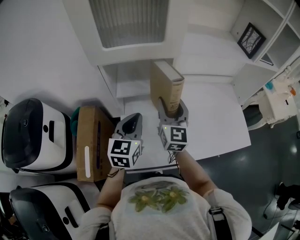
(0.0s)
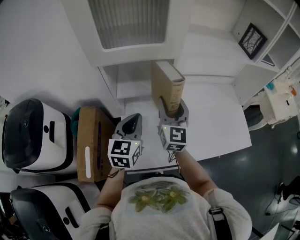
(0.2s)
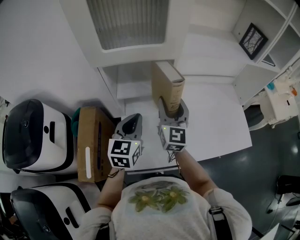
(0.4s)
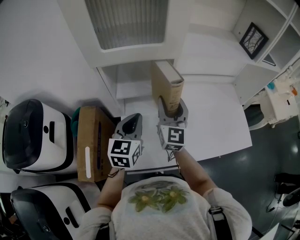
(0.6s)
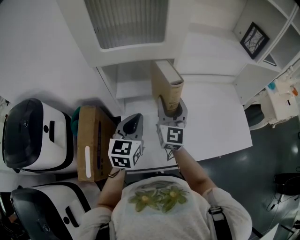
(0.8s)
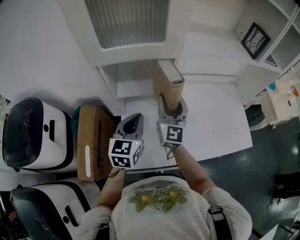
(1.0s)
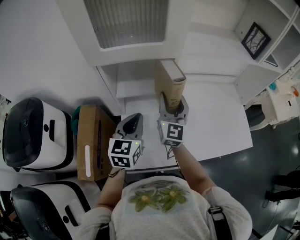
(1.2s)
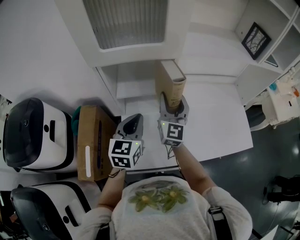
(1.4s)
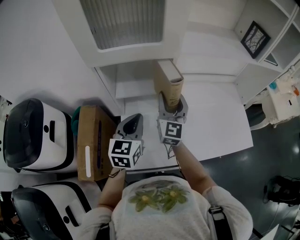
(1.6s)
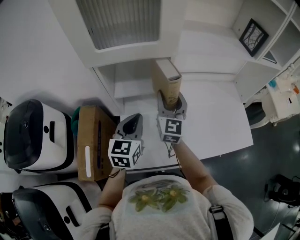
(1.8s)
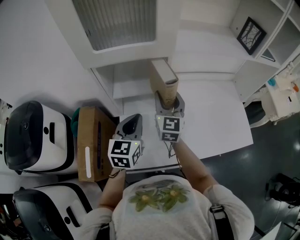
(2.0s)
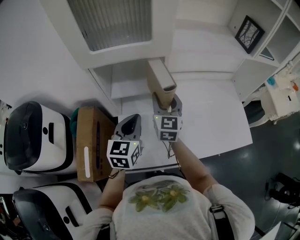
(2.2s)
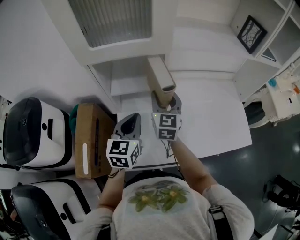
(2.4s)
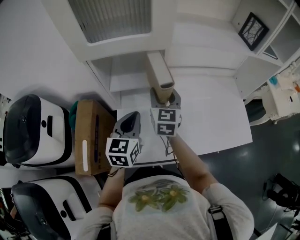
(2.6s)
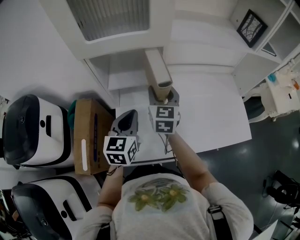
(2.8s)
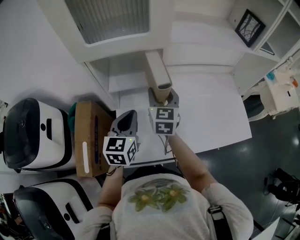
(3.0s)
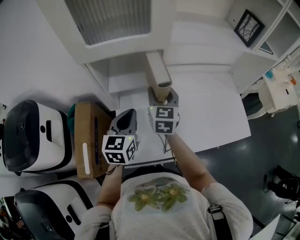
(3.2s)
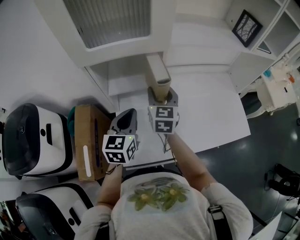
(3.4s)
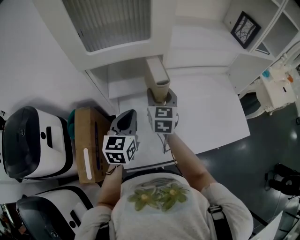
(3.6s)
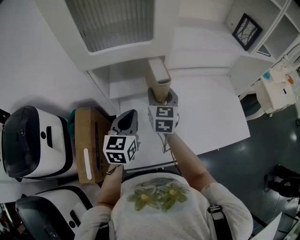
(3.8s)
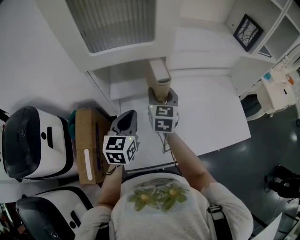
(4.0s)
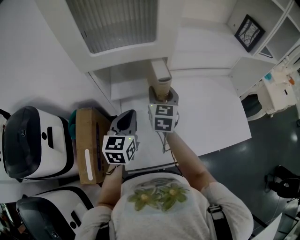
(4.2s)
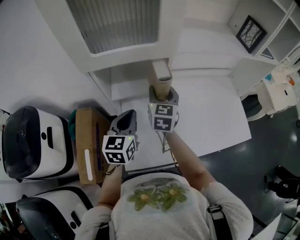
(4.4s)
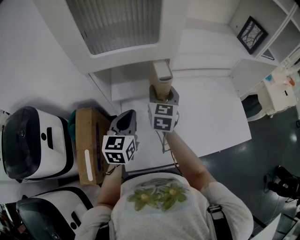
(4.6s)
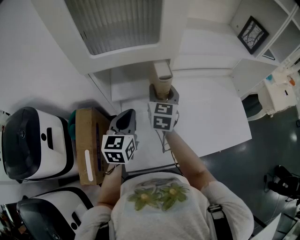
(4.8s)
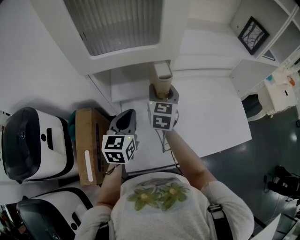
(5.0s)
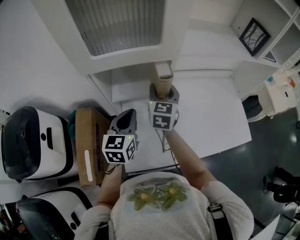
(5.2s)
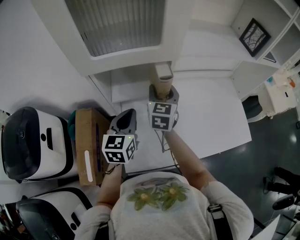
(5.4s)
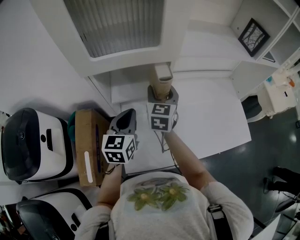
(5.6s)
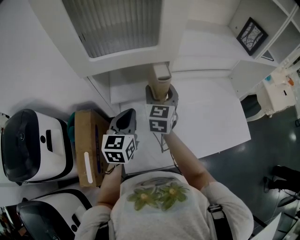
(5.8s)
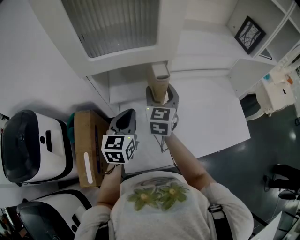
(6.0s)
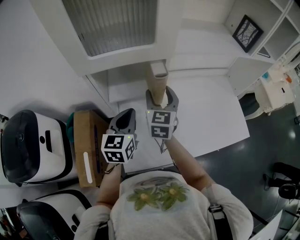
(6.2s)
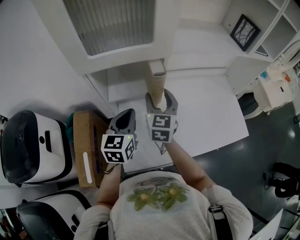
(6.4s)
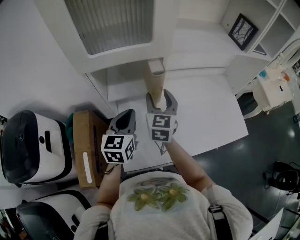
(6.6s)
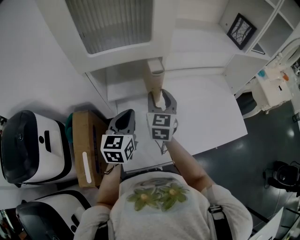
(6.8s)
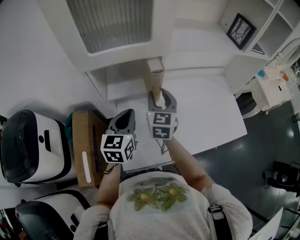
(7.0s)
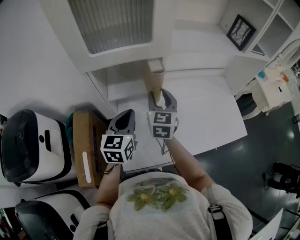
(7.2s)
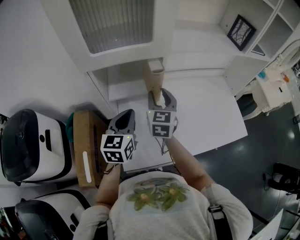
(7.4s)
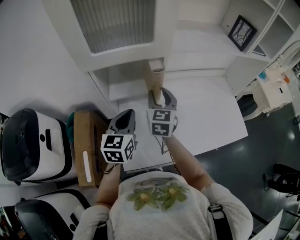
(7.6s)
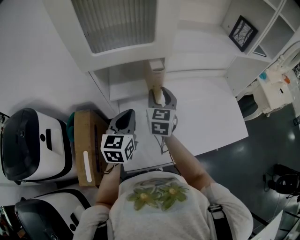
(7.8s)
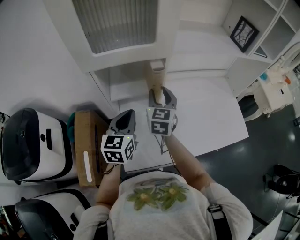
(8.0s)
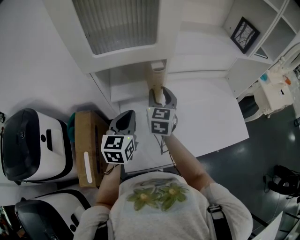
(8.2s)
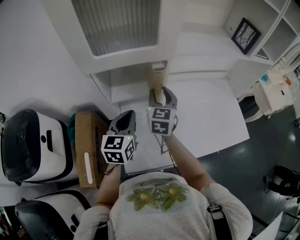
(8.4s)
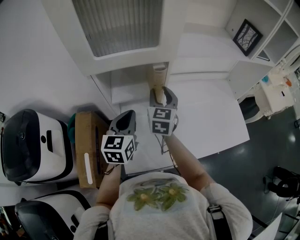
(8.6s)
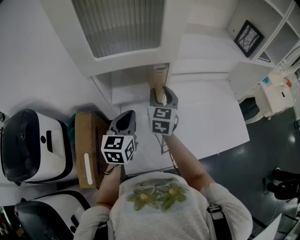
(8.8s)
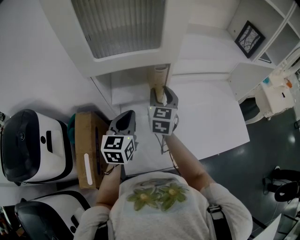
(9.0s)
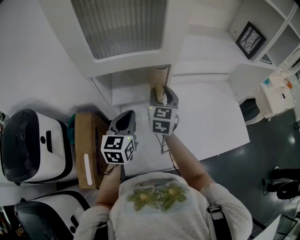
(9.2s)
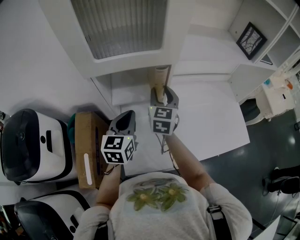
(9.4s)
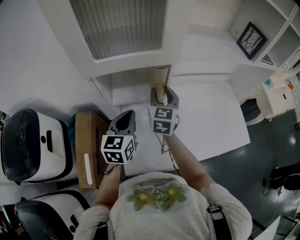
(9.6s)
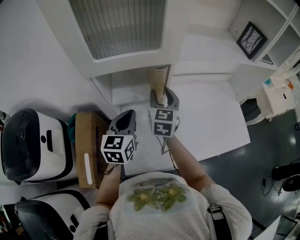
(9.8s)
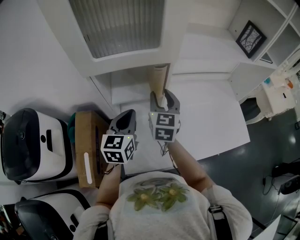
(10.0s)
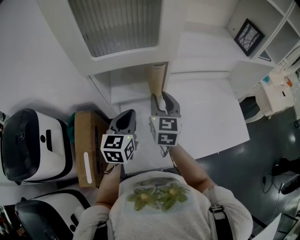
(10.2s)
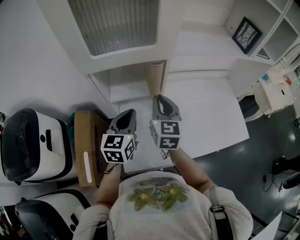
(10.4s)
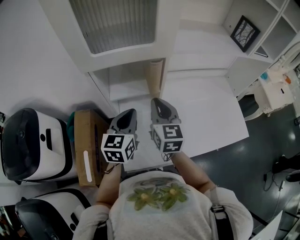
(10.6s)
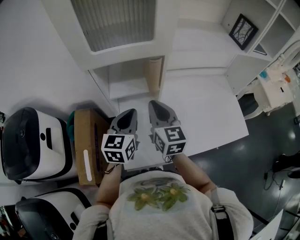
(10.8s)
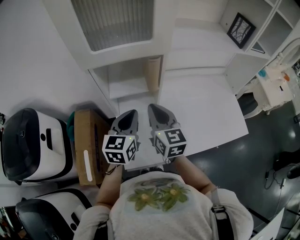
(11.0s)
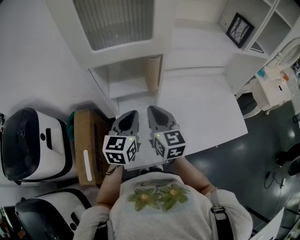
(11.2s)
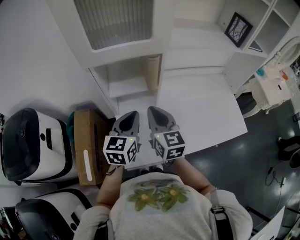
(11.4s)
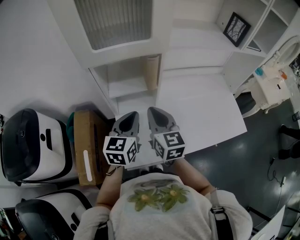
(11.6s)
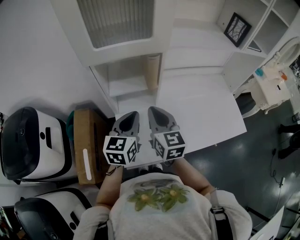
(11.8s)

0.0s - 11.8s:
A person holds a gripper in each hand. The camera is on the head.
0.0s - 1.4s: There are only small adjustments of the grippers.
1.4s - 3.0s: The right gripper swivels roughly 20 degrees.
3.0s - 4.4s: The grippers move only a little.
4.4s - 8.8s: The grippers make only small movements.
8.8s - 10.4s: The right gripper is displaced backward by approximately 5 cm, and closes up.
10.4s - 11.8s: The right gripper travels backward by approximately 10 cm. Meanwhile the left gripper ends up about 5 cm from where it was.

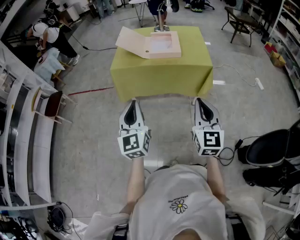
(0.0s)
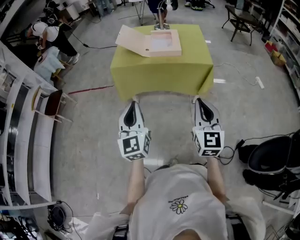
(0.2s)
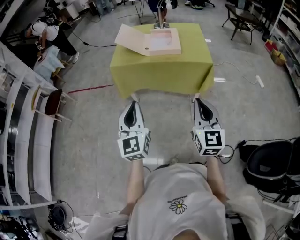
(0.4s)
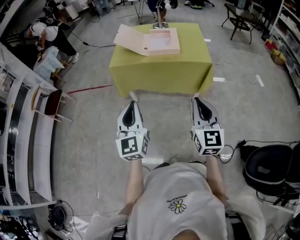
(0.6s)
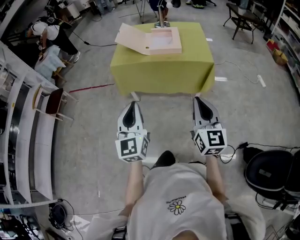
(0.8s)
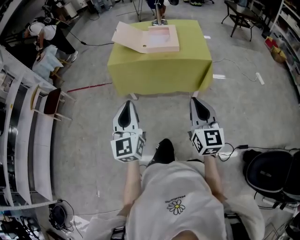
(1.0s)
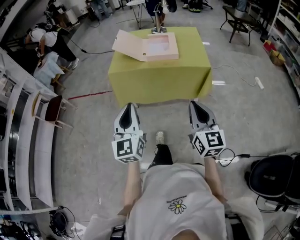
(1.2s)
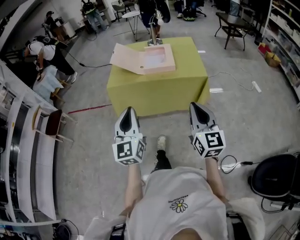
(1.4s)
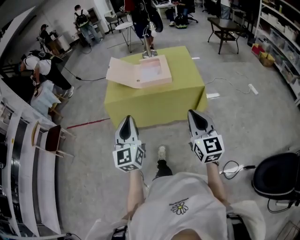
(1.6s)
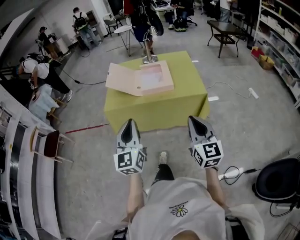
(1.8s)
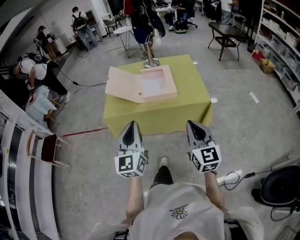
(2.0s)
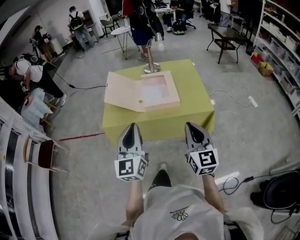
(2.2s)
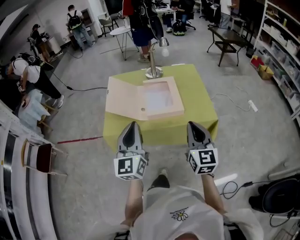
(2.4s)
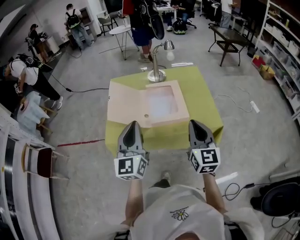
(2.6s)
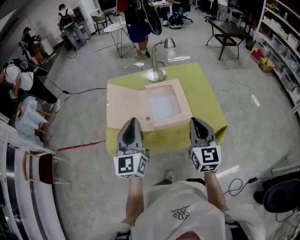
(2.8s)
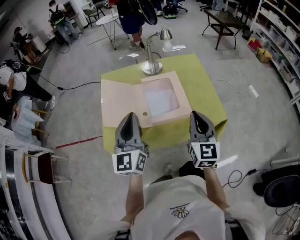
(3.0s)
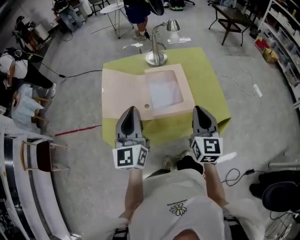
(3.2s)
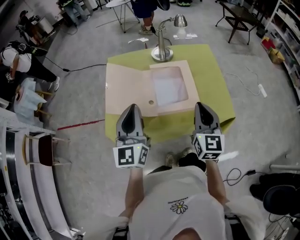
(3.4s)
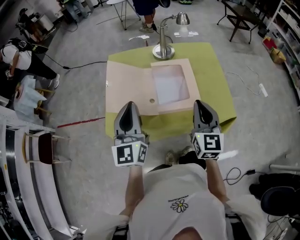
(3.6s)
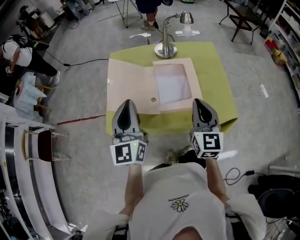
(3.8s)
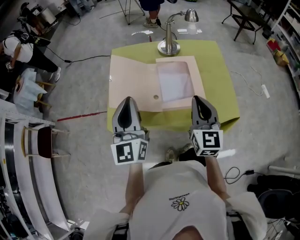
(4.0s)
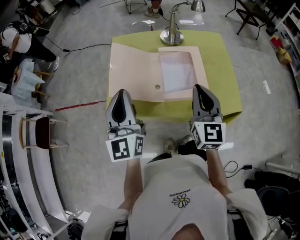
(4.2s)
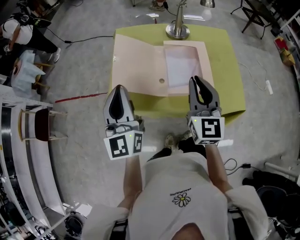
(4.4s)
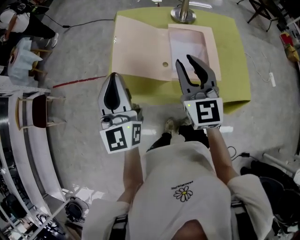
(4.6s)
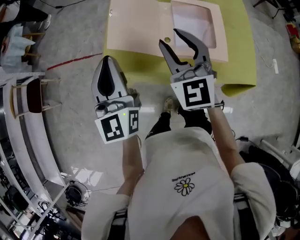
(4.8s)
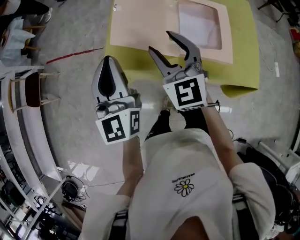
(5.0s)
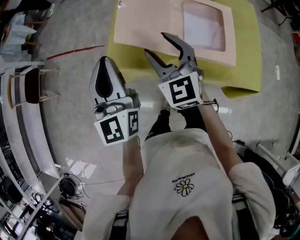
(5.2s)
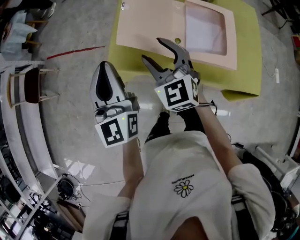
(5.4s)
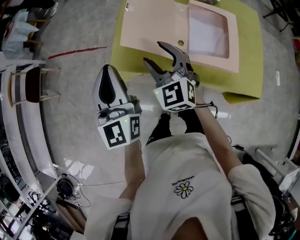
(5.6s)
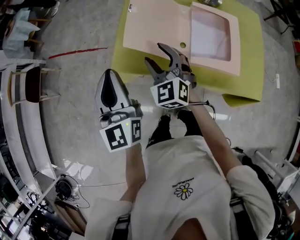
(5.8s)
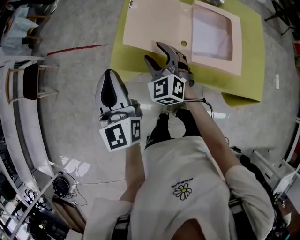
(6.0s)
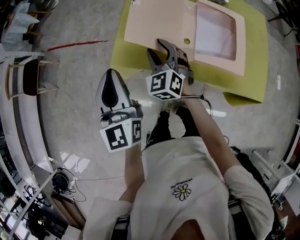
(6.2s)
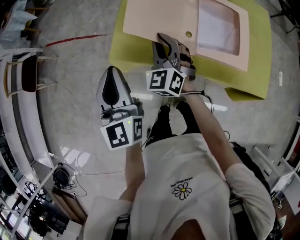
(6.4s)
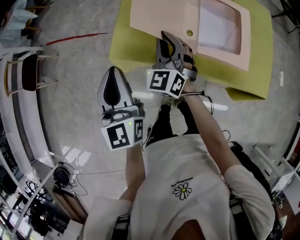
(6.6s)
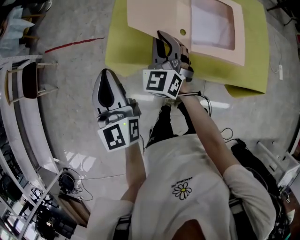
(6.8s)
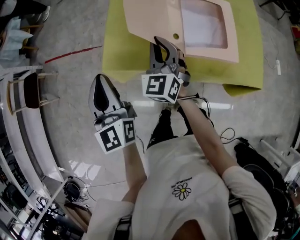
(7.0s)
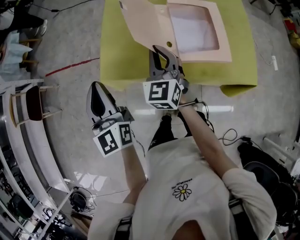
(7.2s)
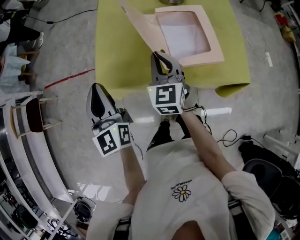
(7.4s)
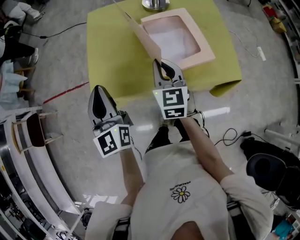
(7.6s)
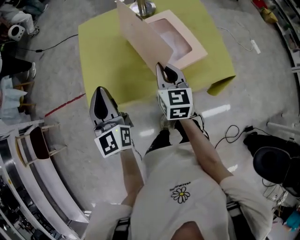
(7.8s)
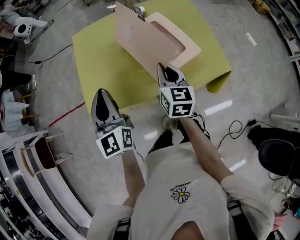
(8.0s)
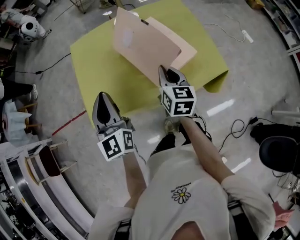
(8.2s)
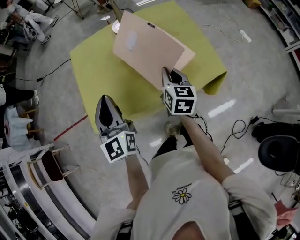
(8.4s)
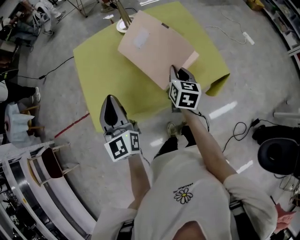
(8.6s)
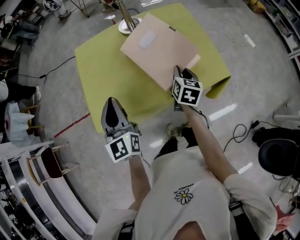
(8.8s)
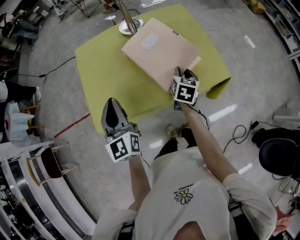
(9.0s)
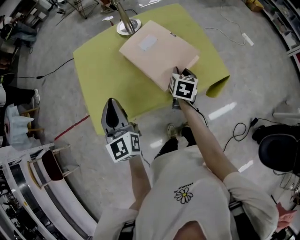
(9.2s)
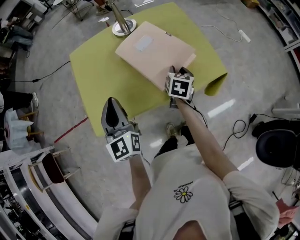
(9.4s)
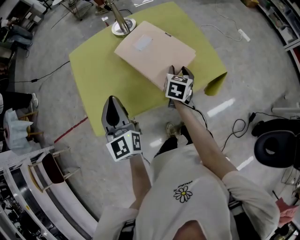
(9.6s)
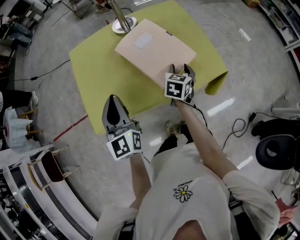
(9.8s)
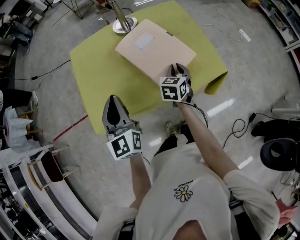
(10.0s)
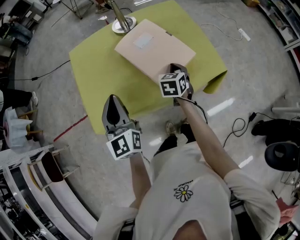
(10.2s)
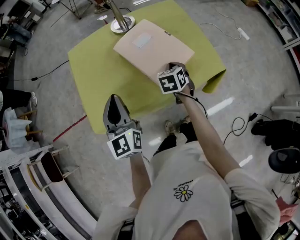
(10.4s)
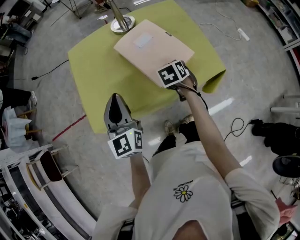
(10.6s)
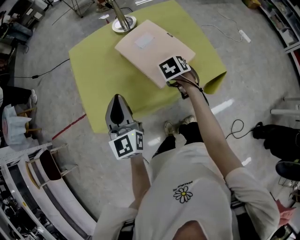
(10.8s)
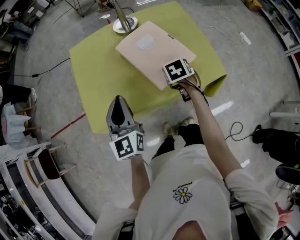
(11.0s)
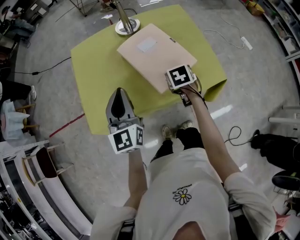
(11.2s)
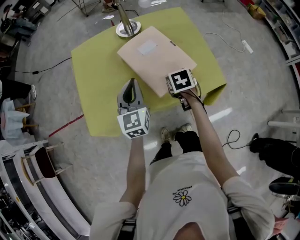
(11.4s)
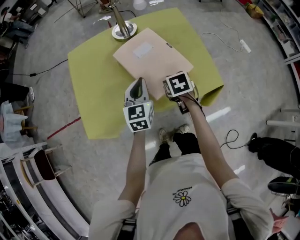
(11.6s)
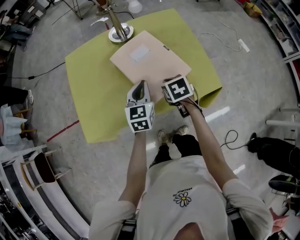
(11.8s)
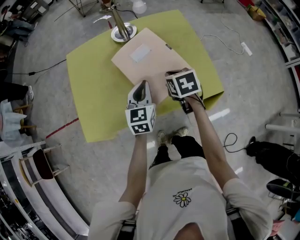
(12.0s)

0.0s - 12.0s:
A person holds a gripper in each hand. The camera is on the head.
0.0s - 1.6s: The grippers both shift forward by roughly 10 cm.
1.6s - 3.0s: Both grippers travel together forward, approximately 40 cm.
3.0s - 4.4s: The left gripper is displaced to the left by approximately 10 cm. The right gripper travels to the left and forward by roughly 10 cm.
4.4s - 6.0s: The right gripper heads to the left, downward and forward, covering approximately 30 cm, changes its angle by roughly 40 degrees, and opens up. The left gripper shifts approximately 15 cm to the left and downward.
6.0s - 7.6s: The left gripper shifts some 5 cm to the right, while the right gripper is displaced to the right and upward by roughly 15 cm, turns by about 40 degrees, and closes its fingers.
7.6s - 9.0s: The right gripper travels to the right and downward by some 20 cm, and rotates some 40 degrees. The left gripper is displaced to the right by some 10 cm.
9.0s - 10.4s: The right gripper swivels roughly 30 degrees, and opens, then closes once more.
10.4s - 12.0s: The right gripper rotates some 20 degrees. Meanwhile the left gripper shifts some 20 cm to the right, forward and downward, and swivels about 20 degrees.
